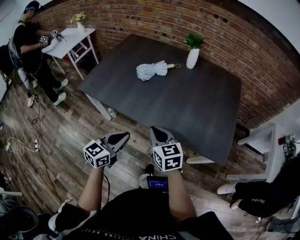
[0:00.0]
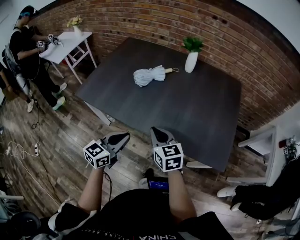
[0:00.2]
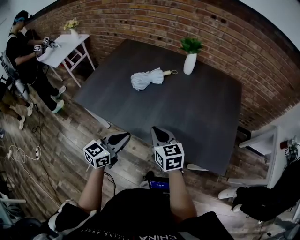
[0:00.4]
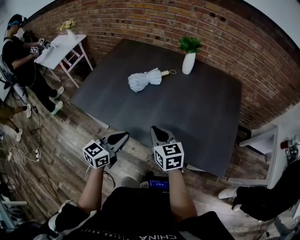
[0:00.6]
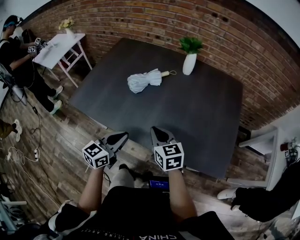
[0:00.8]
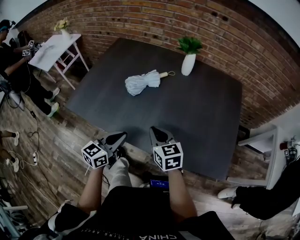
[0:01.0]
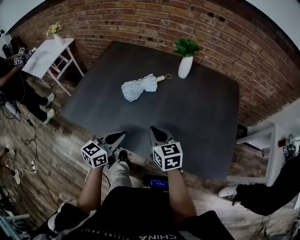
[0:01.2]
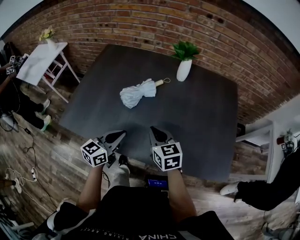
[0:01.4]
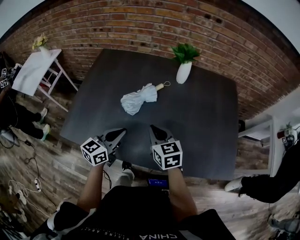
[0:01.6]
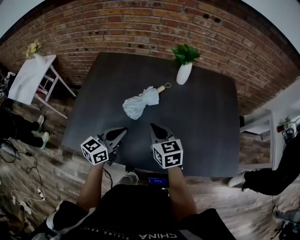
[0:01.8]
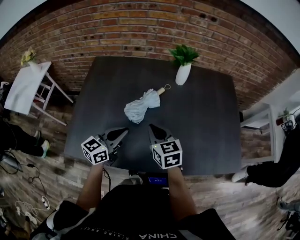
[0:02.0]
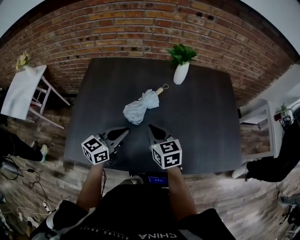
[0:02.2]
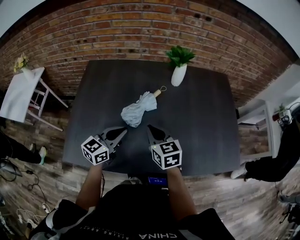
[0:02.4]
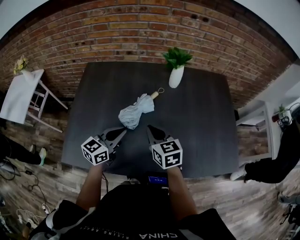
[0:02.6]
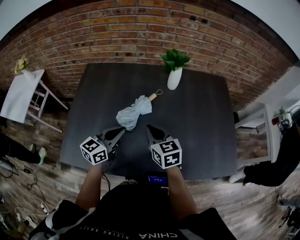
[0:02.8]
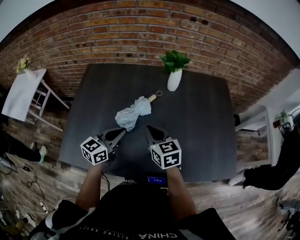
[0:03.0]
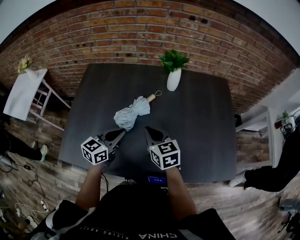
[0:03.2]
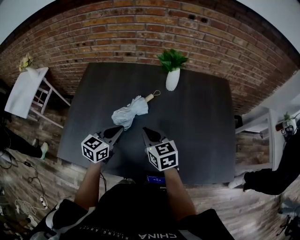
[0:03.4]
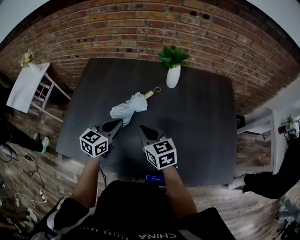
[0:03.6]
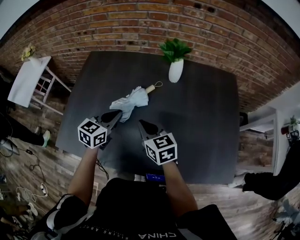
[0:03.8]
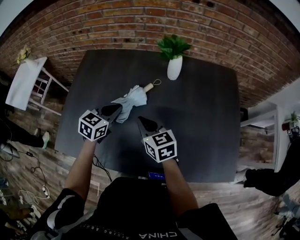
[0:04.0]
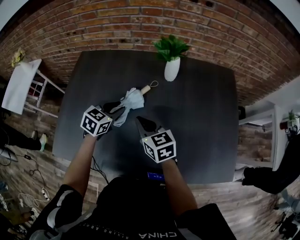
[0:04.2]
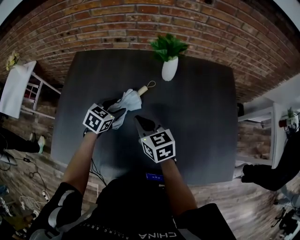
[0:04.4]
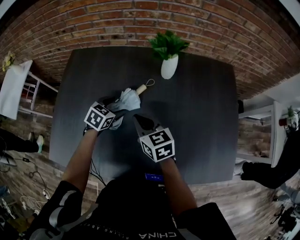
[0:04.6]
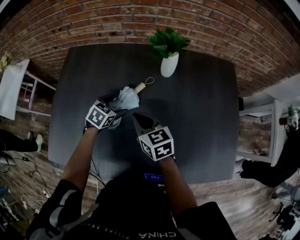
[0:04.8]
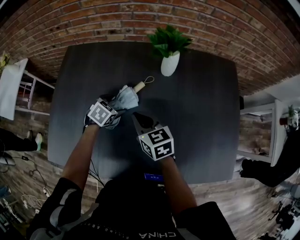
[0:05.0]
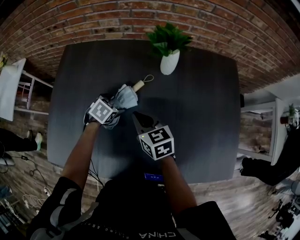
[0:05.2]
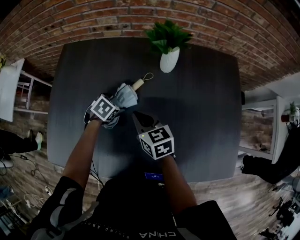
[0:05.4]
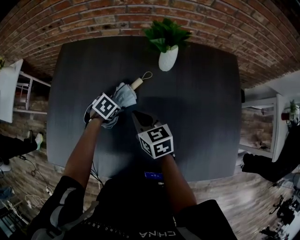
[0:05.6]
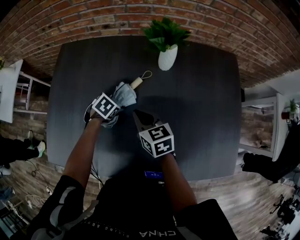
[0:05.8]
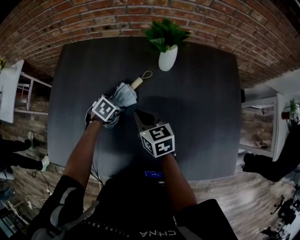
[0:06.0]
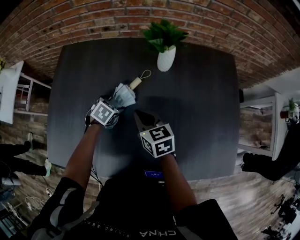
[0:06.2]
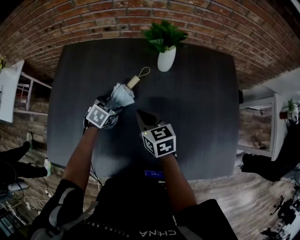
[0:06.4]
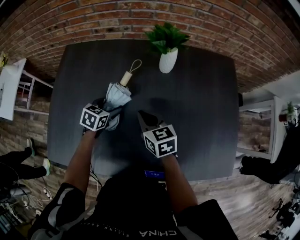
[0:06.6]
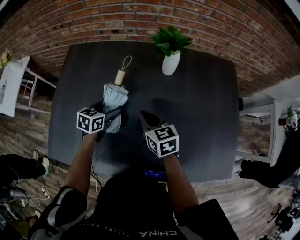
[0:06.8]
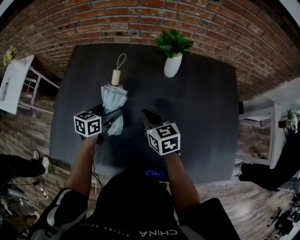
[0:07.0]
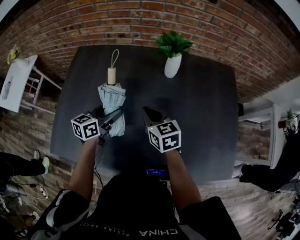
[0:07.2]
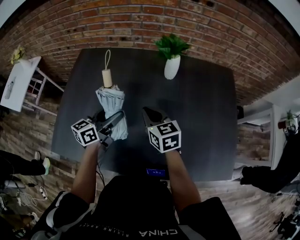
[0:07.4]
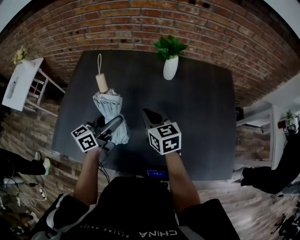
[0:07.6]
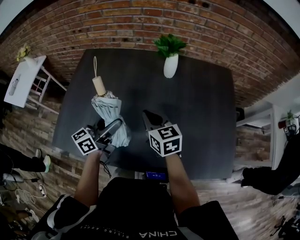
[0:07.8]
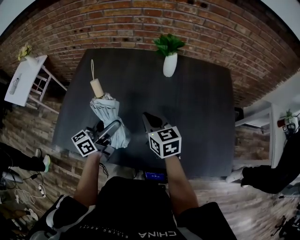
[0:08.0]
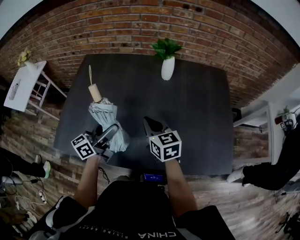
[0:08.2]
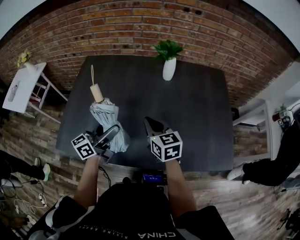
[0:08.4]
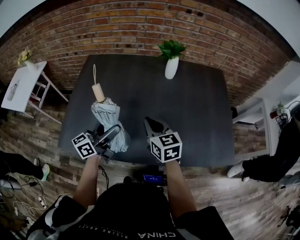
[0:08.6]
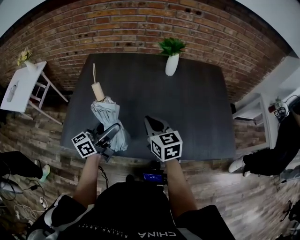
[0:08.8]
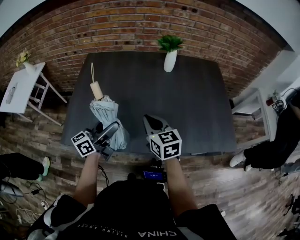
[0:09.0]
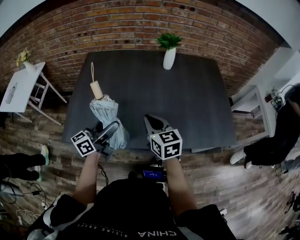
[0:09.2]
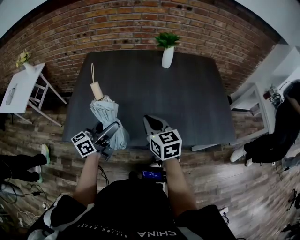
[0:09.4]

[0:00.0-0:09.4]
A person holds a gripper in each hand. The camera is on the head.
0:00.0 to 0:01.6: Both grippers travel together forward, about 25 cm.
0:01.6 to 0:03.2: The two grippers go approximately 10 cm forward.
0:03.2 to 0:04.8: The left gripper goes some 20 cm forward and downward, tilts its fingers approximately 40 degrees downward, and opens; the right gripper goes roughly 10 cm forward.
0:06.2 to 0:07.8: The left gripper shifts about 30 cm upward and backward, and points its fingers roughly 70 degrees further upward. Meanwhile the right gripper heads backward and upward, covering some 10 cm.
0:07.8 to 0:09.4: The left gripper heads backward and to the left, covering about 20 cm, while the right gripper heads backward, covering some 20 cm.

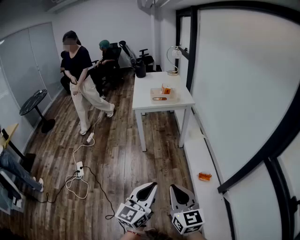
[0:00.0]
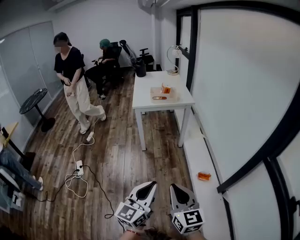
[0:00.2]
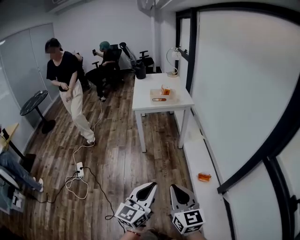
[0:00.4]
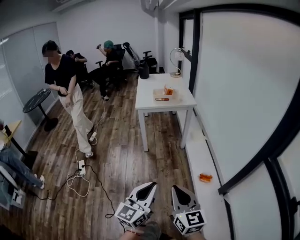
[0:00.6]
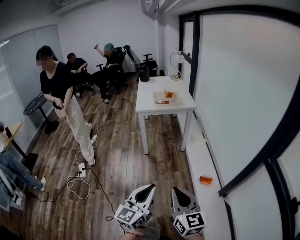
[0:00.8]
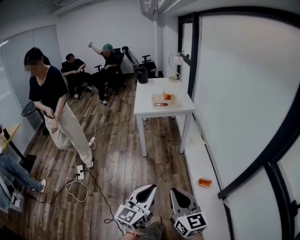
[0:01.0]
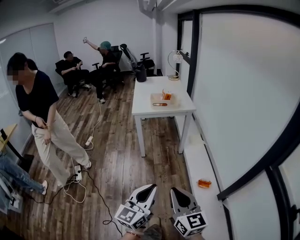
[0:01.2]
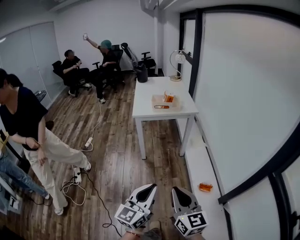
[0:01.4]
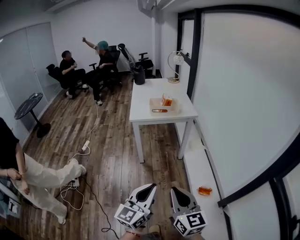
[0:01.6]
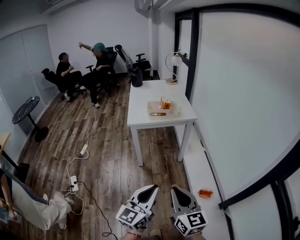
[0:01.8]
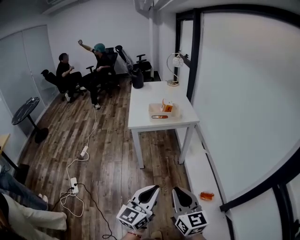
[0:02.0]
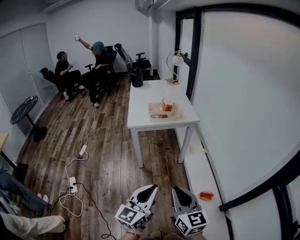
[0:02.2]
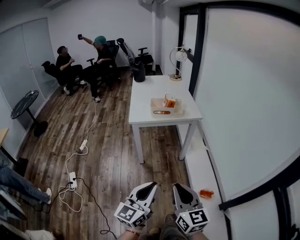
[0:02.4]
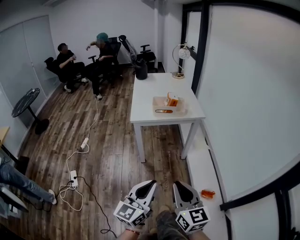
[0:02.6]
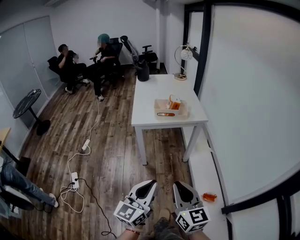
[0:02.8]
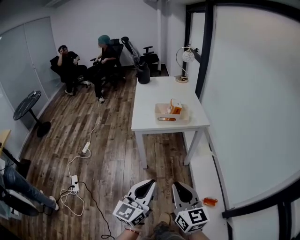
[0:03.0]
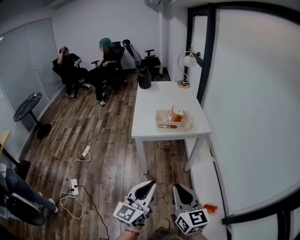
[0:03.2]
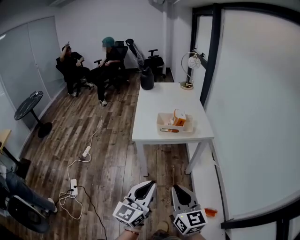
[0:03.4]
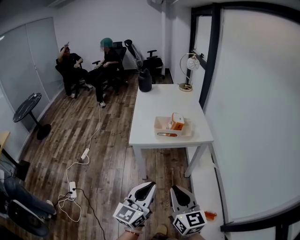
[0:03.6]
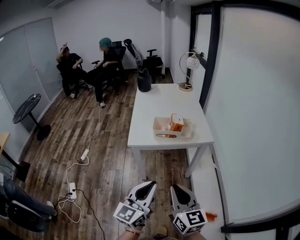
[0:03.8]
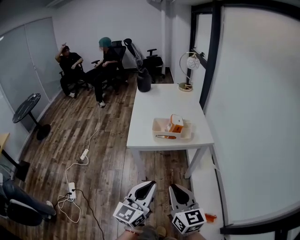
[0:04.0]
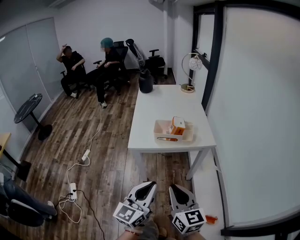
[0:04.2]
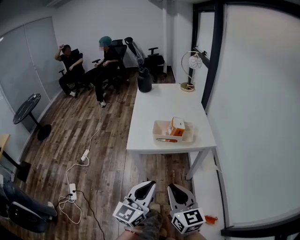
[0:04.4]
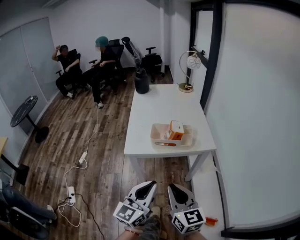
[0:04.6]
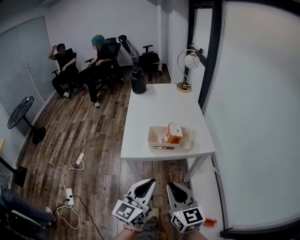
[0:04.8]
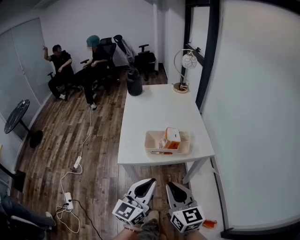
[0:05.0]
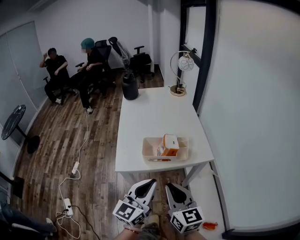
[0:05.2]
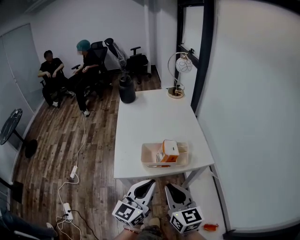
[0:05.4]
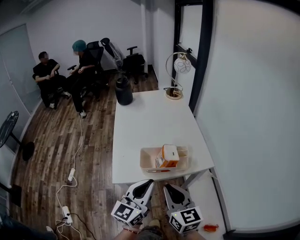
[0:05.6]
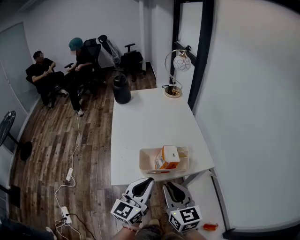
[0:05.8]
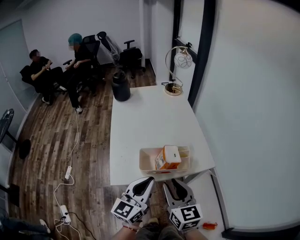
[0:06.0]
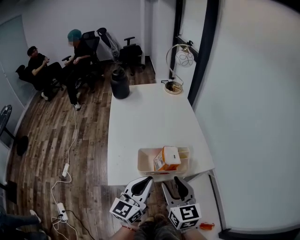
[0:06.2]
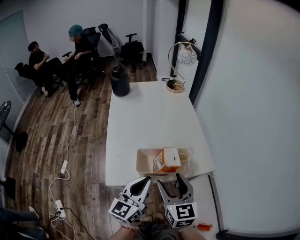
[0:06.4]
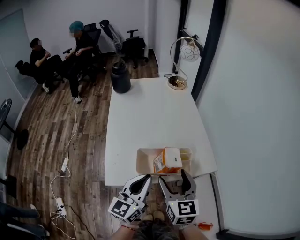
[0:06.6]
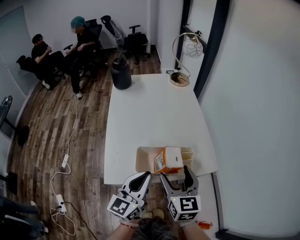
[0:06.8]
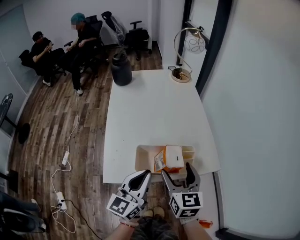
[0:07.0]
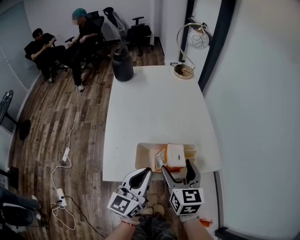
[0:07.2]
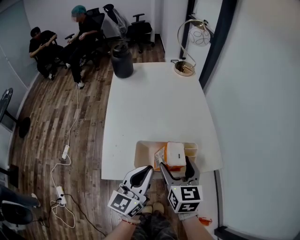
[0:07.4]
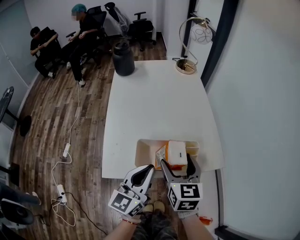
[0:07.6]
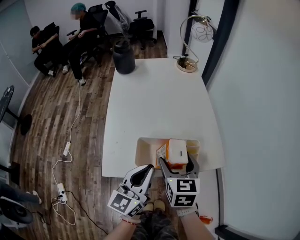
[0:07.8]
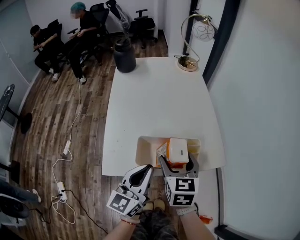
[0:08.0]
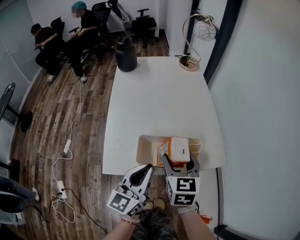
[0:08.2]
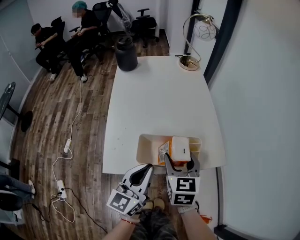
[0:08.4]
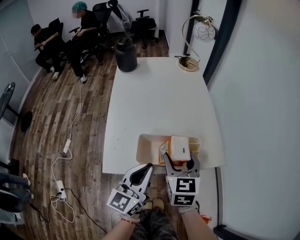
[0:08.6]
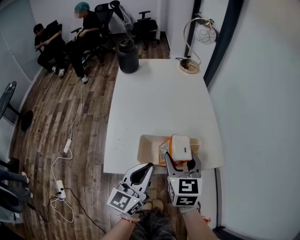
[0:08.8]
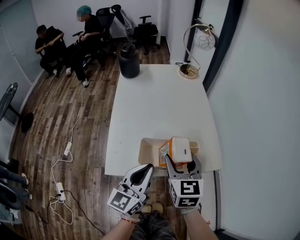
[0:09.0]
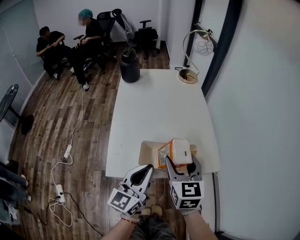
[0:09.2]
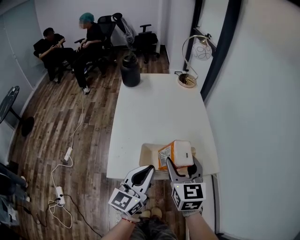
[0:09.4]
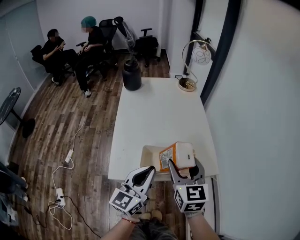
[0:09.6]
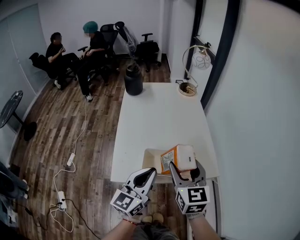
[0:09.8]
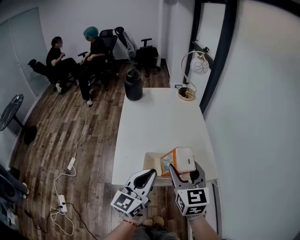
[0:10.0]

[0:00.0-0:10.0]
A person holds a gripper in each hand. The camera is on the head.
0:00.0 to 0:01.4: The grippers both shift forward by approximately 10 cm.
0:01.4 to 0:02.8: Both grippers move forward, roughly 20 cm.
0:02.8 to 0:04.2: Both grippers move forward, approximately 20 cm.
0:04.2 to 0:05.8: The two grippers go about 25 cm forward.
0:05.8 to 0:07.2: The right gripper heads forward and downward, covering some 15 cm, and opens up, while the left gripper heads forward and downward, covering approximately 10 cm.
0:07.2 to 0:08.6: There are only small adjustments of the grippers.
0:08.6 to 0:10.0: Both grippers travel together upward, about 10 cm.

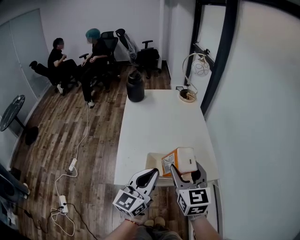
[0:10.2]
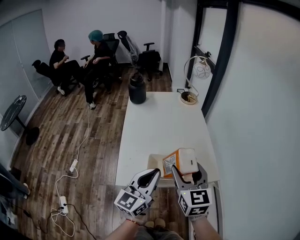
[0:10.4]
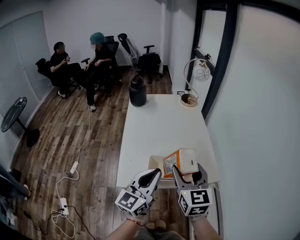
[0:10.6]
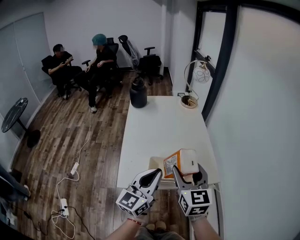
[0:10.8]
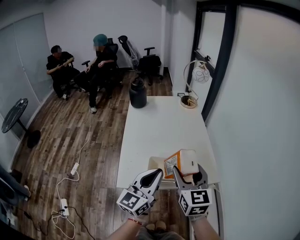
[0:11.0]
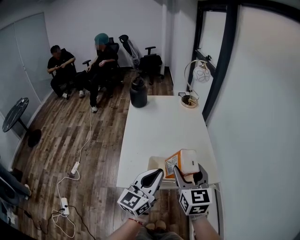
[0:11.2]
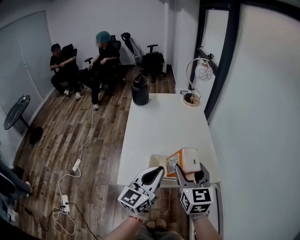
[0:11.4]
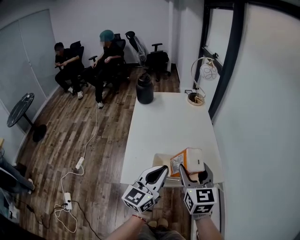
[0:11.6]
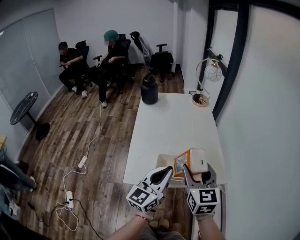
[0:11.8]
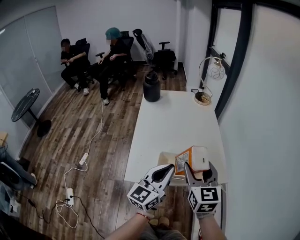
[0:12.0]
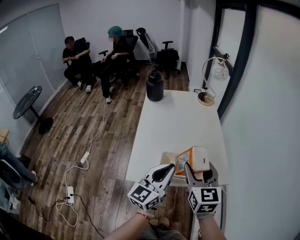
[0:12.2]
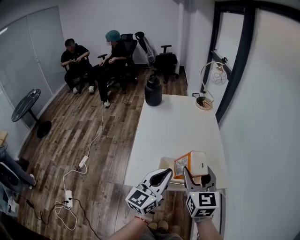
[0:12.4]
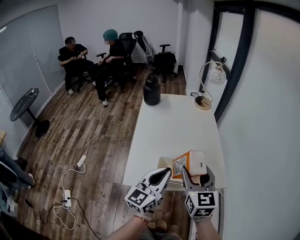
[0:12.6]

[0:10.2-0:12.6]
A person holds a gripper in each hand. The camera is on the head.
0:10.2 to 0:12.6: The grippers stay close to where they were, moving slightly.

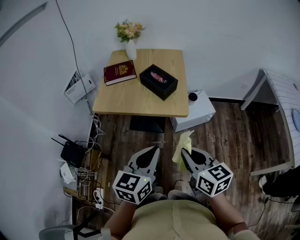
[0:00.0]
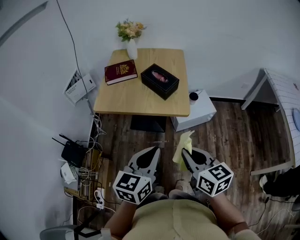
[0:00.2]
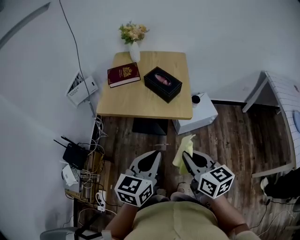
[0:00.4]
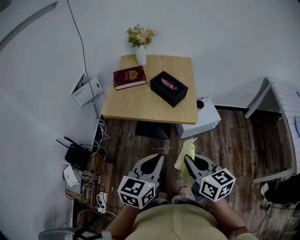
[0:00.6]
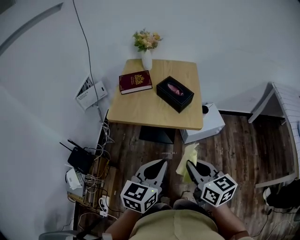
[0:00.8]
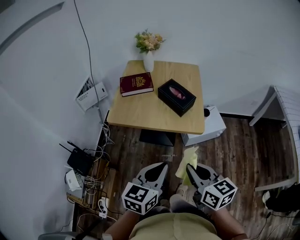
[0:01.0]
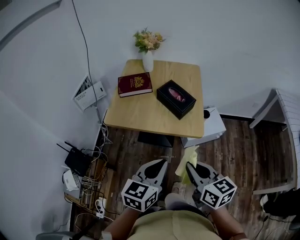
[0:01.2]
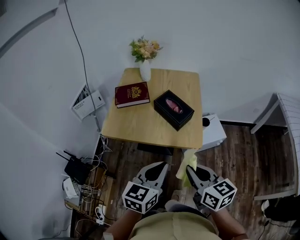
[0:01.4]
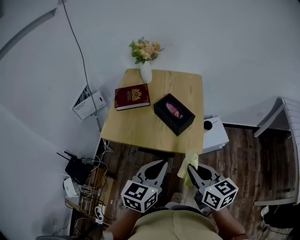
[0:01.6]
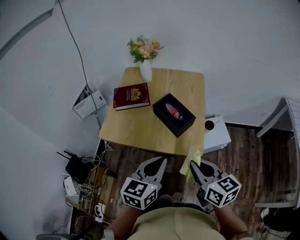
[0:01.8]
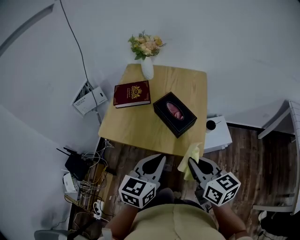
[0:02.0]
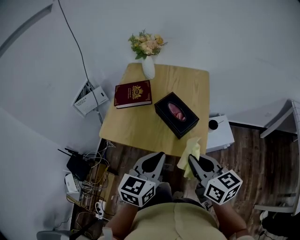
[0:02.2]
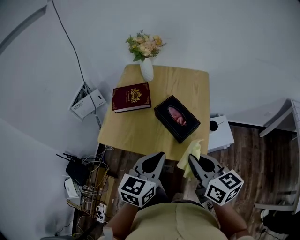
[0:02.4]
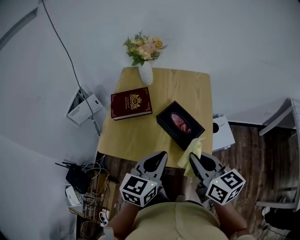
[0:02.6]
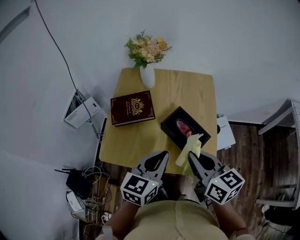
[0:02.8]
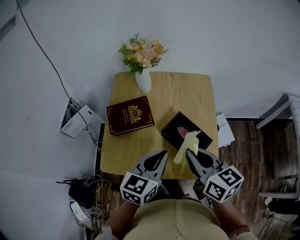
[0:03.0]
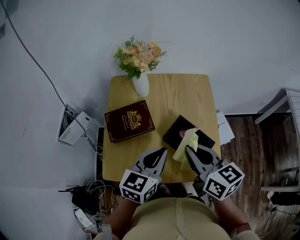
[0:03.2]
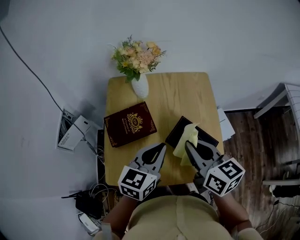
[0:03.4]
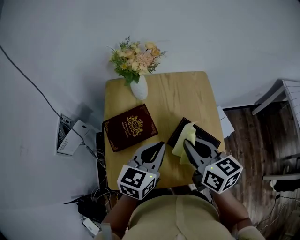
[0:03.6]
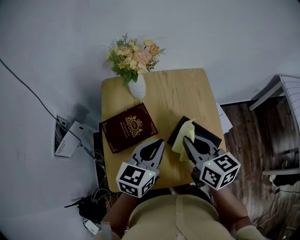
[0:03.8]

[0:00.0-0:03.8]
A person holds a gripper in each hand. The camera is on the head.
0:00.0 to 0:01.2: The grippers both shift forward by some 5 cm.
0:01.2 to 0:02.6: The grippers both shift forward by about 20 cm.
0:02.6 to 0:03.8: Both grippers move forward and to the left, roughly 20 cm.
